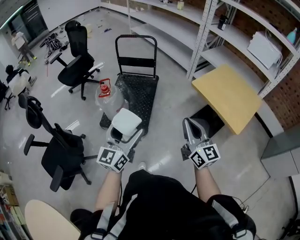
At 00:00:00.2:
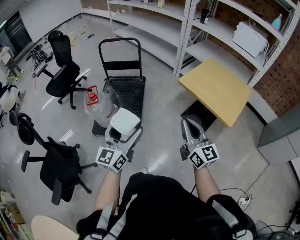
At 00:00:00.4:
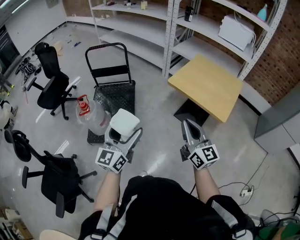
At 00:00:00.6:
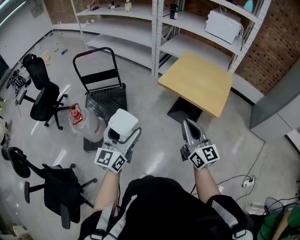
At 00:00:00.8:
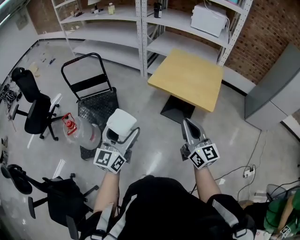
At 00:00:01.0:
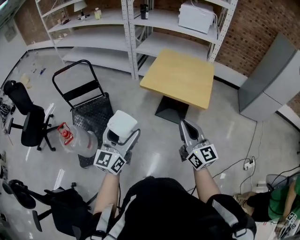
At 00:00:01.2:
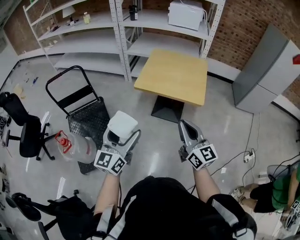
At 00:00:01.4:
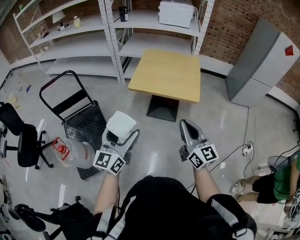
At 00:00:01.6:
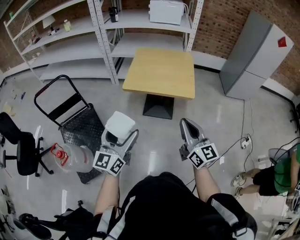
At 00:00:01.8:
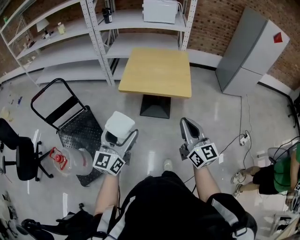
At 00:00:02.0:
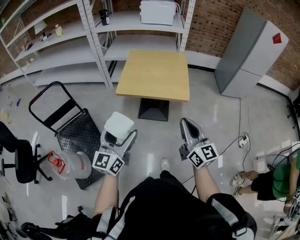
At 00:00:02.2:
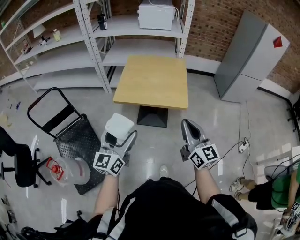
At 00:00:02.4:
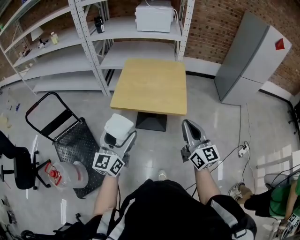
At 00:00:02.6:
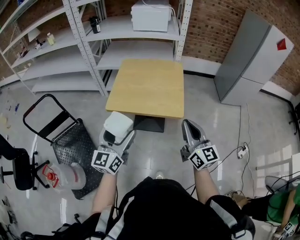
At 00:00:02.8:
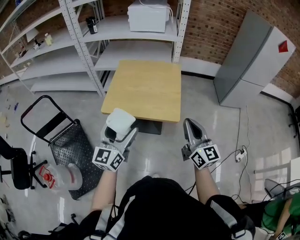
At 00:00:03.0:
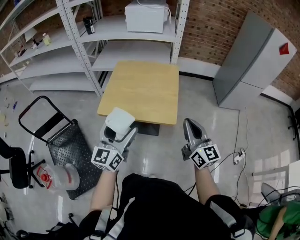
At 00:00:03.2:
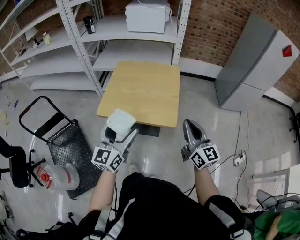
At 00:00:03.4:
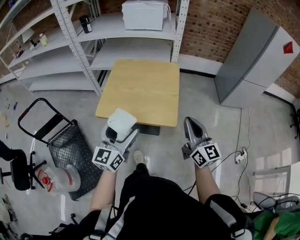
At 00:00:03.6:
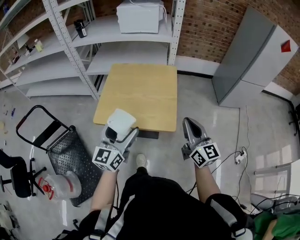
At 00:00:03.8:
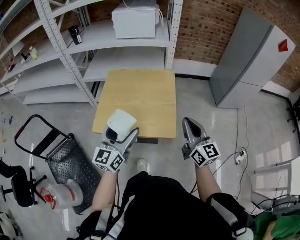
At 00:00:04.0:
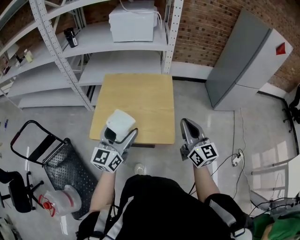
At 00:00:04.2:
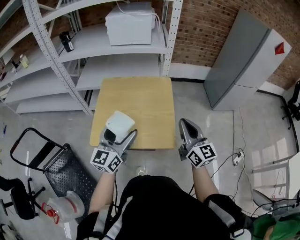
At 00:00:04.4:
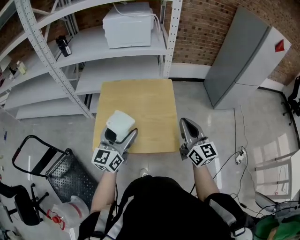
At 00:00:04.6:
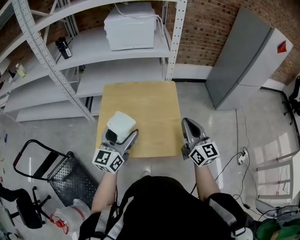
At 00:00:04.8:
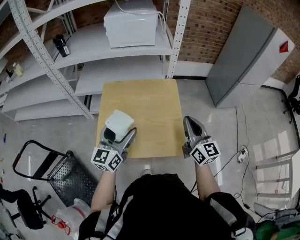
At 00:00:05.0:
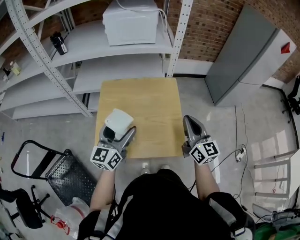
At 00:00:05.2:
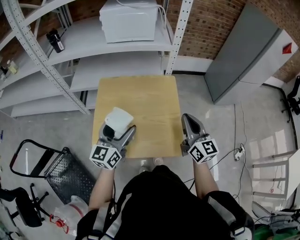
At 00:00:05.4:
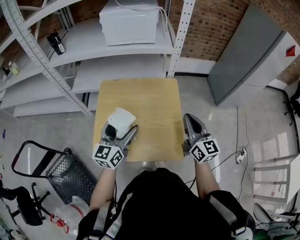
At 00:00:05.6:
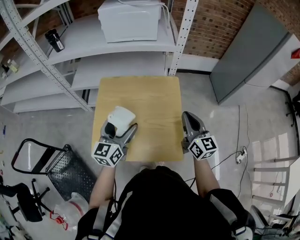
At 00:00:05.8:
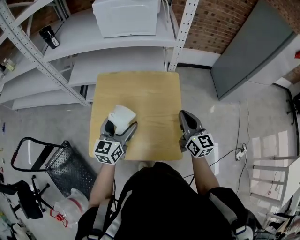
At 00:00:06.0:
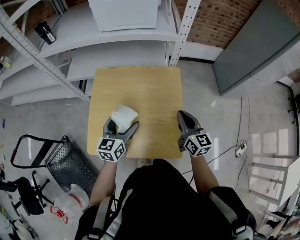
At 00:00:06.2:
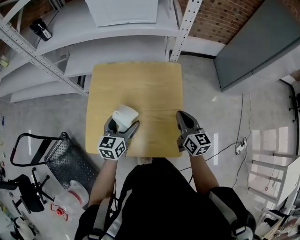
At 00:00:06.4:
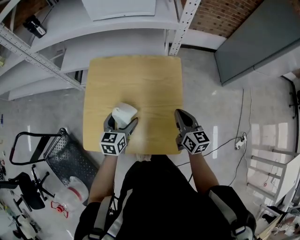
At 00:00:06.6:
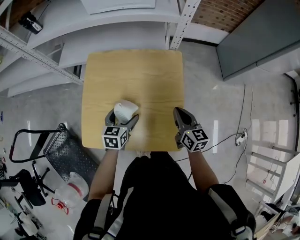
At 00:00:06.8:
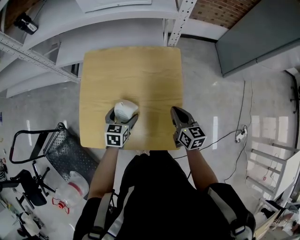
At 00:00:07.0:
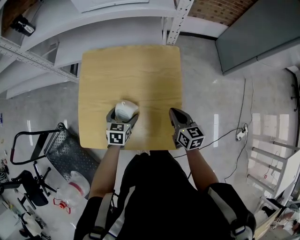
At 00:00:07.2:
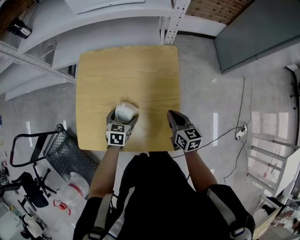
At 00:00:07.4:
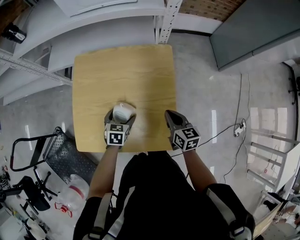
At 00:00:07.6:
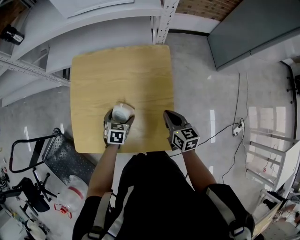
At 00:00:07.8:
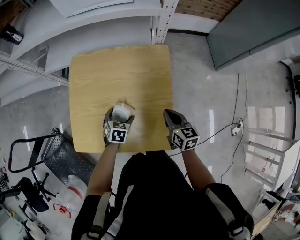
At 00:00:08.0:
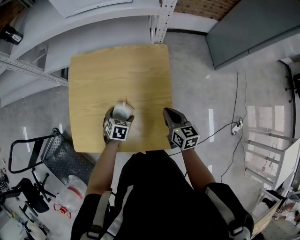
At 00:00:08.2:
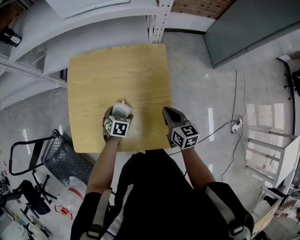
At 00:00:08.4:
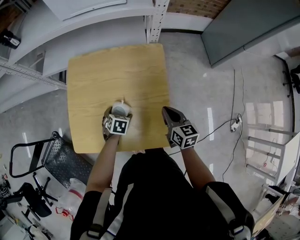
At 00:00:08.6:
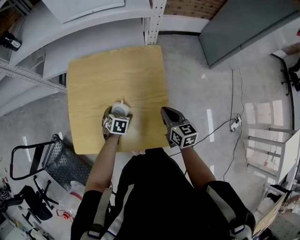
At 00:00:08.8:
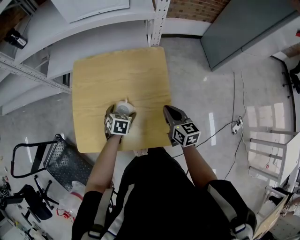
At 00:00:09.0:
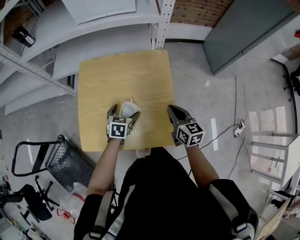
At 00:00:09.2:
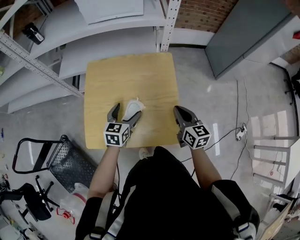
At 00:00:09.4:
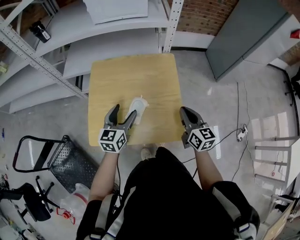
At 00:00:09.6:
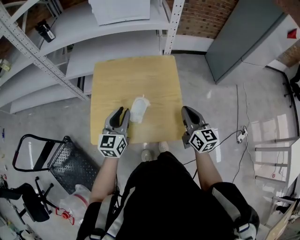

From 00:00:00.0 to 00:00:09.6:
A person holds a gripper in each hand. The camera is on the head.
From 00:00:00.0 to 00:00:01.6: The right gripper changes place by roughly 15 cm, and swivels approximately 40 degrees, while the left gripper shifts by about 20 cm, and rotates roughly 40 degrees.
From 00:00:01.6 to 00:00:03.2: Both grippers travel together forward and to the right, roughly 30 cm.
From 00:00:03.2 to 00:00:04.8: Both grippers travel together forward, some 25 cm.
From 00:00:04.8 to 00:00:06.4: Both grippers move downward and forward, about 20 cm. The left gripper angles its fingers downward, by roughly 30 degrees. The right gripper rotates about 20 degrees.
From 00:00:06.4 to 00:00:08.0: The left gripper goes approximately 15 cm downward, and tips its fingers downward by approximately 30 degrees. Meanwhile the right gripper travels downward by about 5 cm.
From 00:00:08.0 to 00:00:09.6: The right gripper is displaced upward and backward by approximately 15 cm, and changes its angle by about 20 degrees, while the left gripper is displaced upward by about 25 cm, angles its fingers upward, by roughly 50 degrees, and closes its fingers.

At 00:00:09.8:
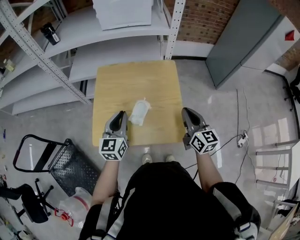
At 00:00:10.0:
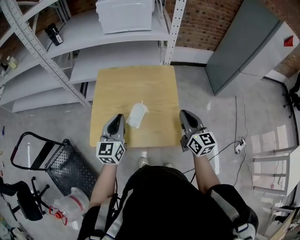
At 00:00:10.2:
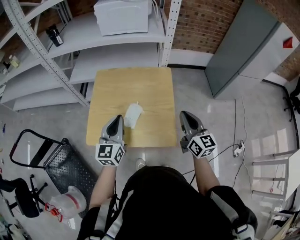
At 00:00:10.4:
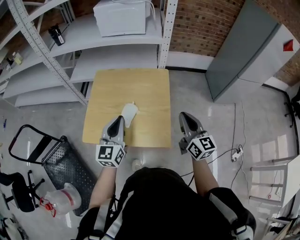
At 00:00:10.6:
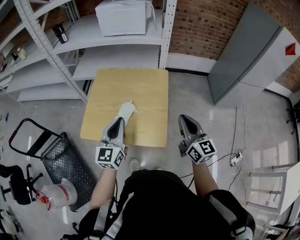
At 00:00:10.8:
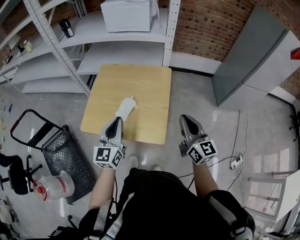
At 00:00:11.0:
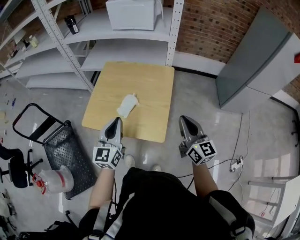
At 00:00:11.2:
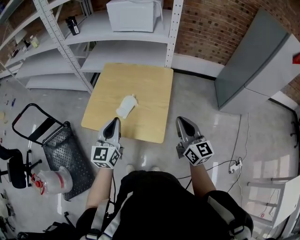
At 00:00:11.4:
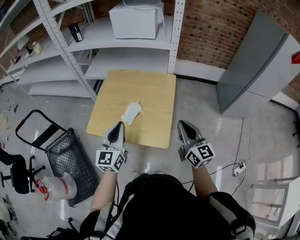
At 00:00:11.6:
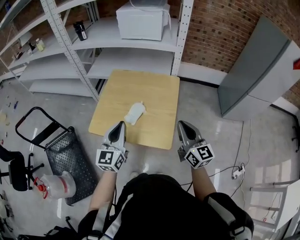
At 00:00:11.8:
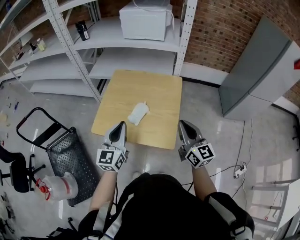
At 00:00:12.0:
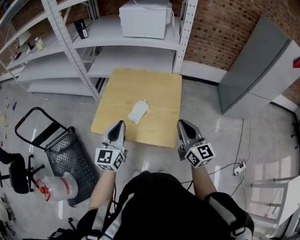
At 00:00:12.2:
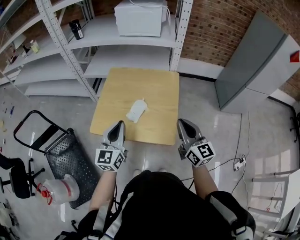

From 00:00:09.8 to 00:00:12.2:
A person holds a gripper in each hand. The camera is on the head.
From 00:00:09.8 to 00:00:11.0: The left gripper heads backward, to the right and upward, covering approximately 15 cm; the right gripper goes some 10 cm to the right and backward.
From 00:00:11.0 to 00:00:12.2: Both grippers move to the left, approximately 5 cm.

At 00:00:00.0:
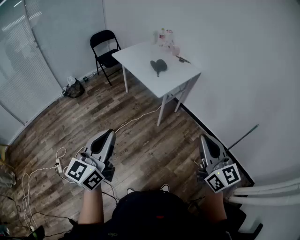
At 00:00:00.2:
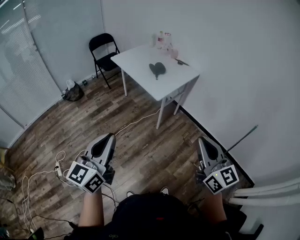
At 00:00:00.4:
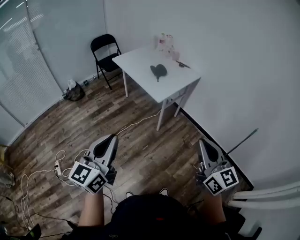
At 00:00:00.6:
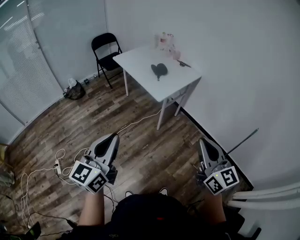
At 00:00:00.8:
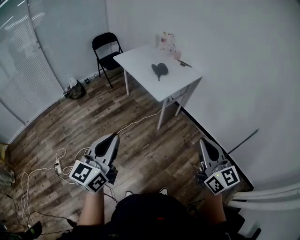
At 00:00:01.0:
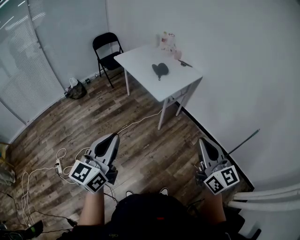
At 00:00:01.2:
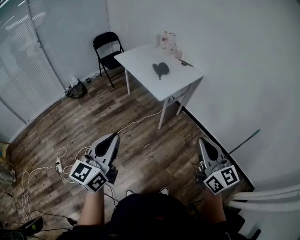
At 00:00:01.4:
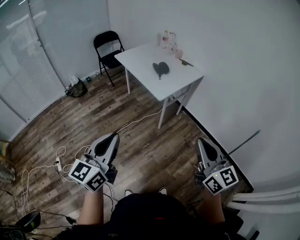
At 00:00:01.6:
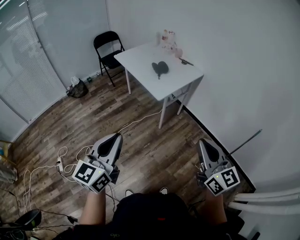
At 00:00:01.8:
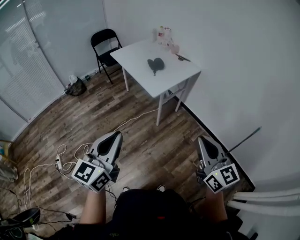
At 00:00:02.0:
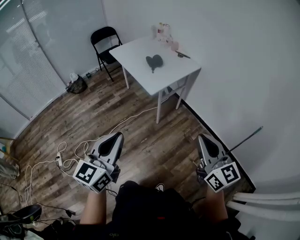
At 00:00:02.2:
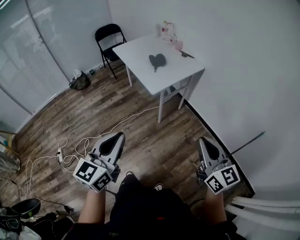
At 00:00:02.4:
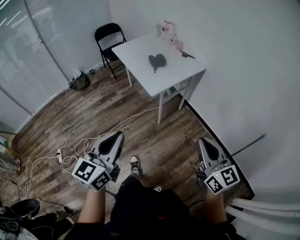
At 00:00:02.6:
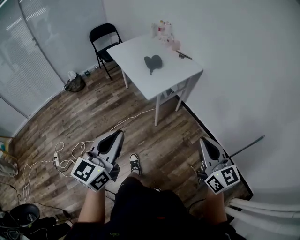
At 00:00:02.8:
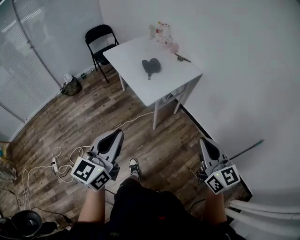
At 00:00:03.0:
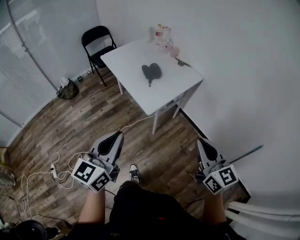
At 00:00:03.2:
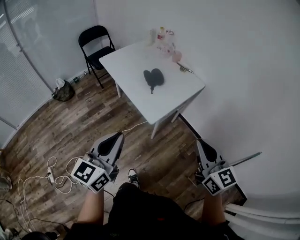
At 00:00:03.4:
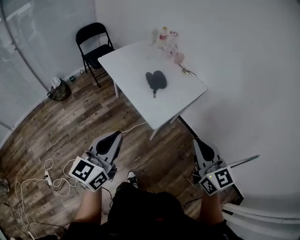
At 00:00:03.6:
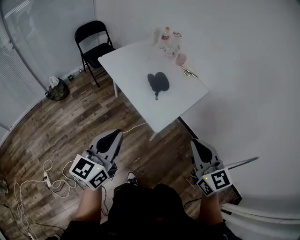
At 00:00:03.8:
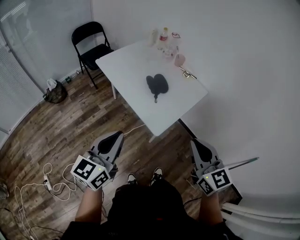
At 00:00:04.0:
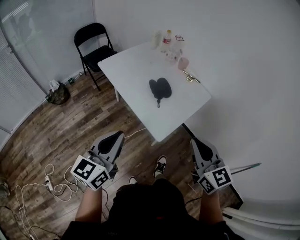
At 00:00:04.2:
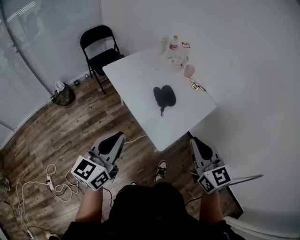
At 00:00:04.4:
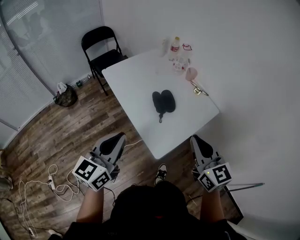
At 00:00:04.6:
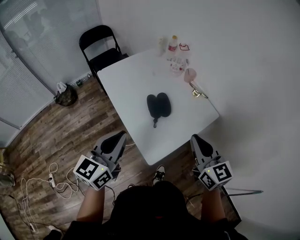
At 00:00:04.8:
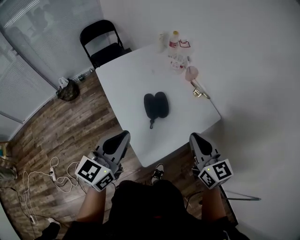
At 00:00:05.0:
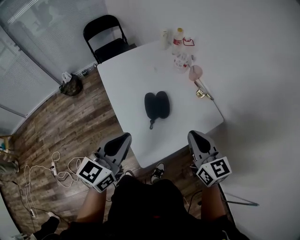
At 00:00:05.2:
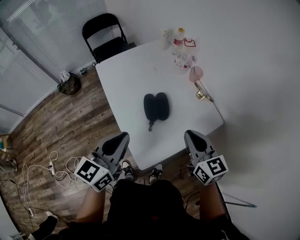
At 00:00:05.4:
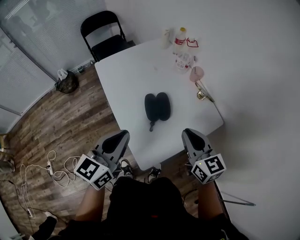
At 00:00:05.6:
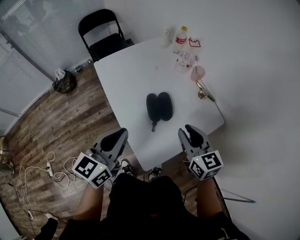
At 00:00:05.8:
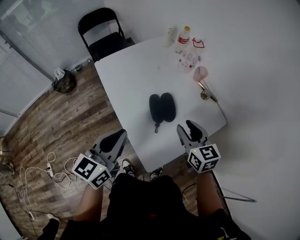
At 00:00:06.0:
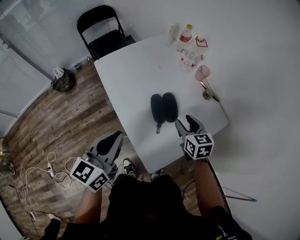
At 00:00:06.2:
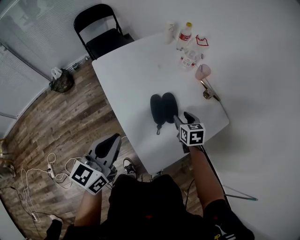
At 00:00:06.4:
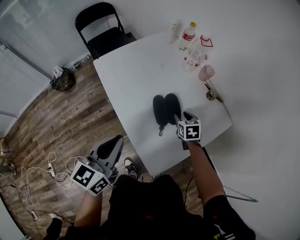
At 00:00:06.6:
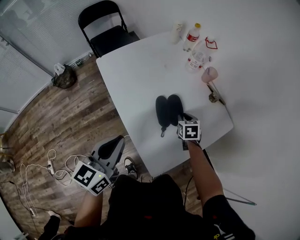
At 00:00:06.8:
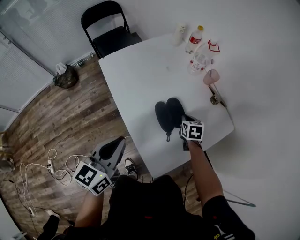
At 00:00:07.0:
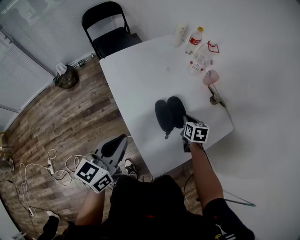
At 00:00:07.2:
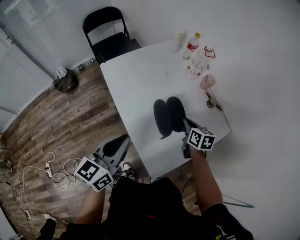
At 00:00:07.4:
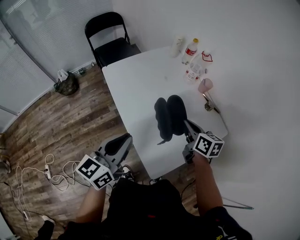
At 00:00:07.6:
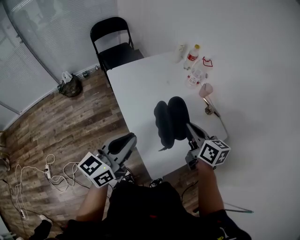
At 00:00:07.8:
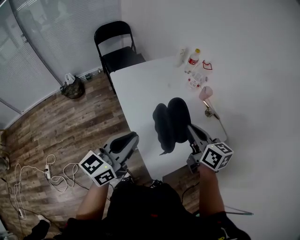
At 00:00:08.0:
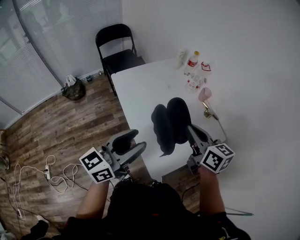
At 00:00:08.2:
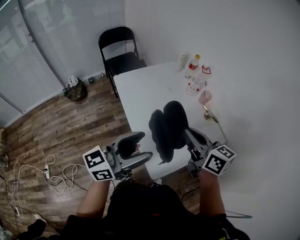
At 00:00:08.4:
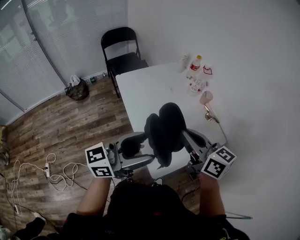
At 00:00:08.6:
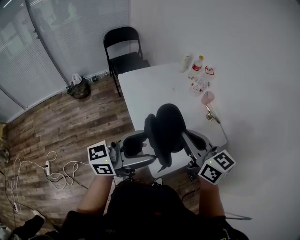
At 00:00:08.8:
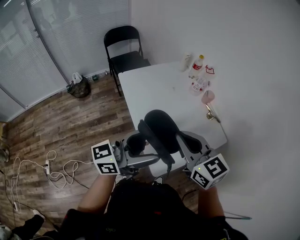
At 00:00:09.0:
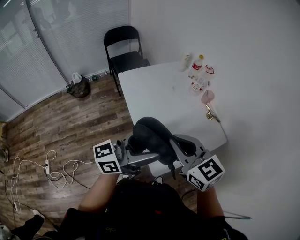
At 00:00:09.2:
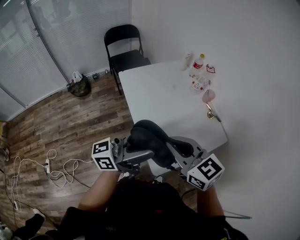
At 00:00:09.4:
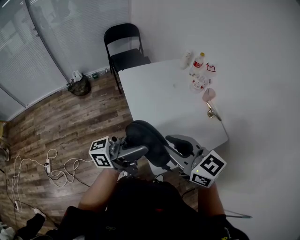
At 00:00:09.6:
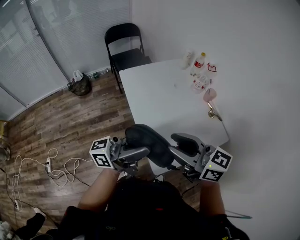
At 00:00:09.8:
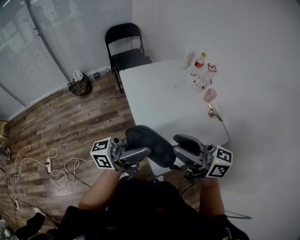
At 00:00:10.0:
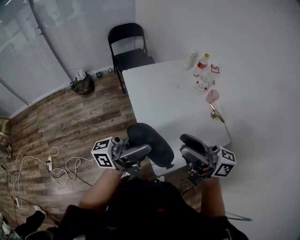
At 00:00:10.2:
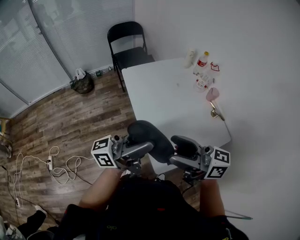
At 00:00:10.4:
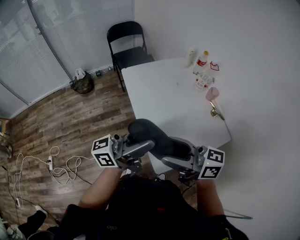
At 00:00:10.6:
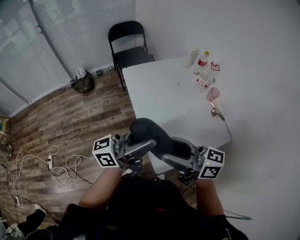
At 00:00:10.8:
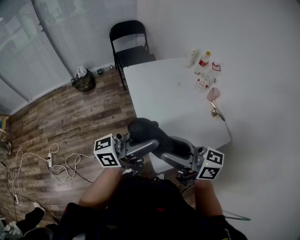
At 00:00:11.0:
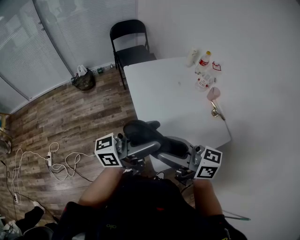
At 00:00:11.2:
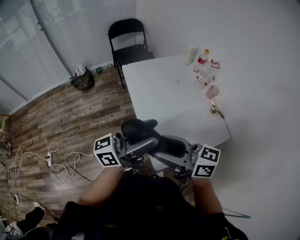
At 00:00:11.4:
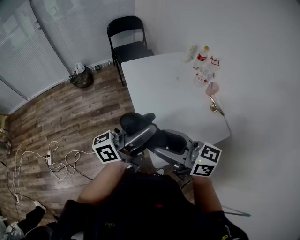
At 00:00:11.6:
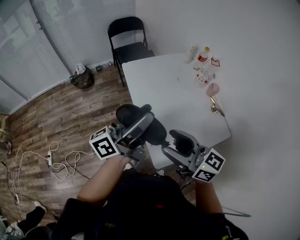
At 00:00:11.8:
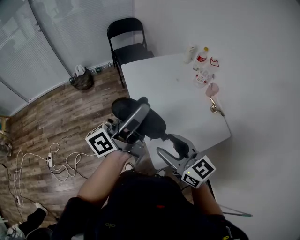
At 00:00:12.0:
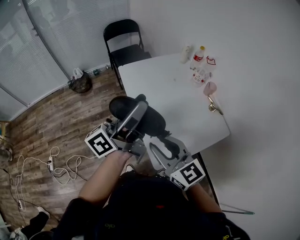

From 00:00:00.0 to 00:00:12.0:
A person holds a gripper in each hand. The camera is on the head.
From 00:00:00.0 to 00:00:01.6: The left gripper travels to the right by some 5 cm, while the right gripper ends up approximately 5 cm from where it was.
From 00:00:01.6 to 00:00:03.0: Both grippers move forward, some 20 cm.
From 00:00:03.0 to 00:00:04.4: The two grippers go about 30 cm forward.
From 00:00:04.4 to 00:00:06.0: The right gripper shifts about 35 cm forward and downward, swivels some 30 degrees, and opens up. The left gripper shifts about 15 cm forward.
From 00:00:06.0 to 00:00:07.6: The right gripper heads upward, covering about 10 cm, changes its angle by roughly 20 degrees, and closes up.
From 00:00:07.6 to 00:00:09.0: The left gripper shifts approximately 10 cm upward, backward and to the right, swivels approximately 30 degrees, and opens its fingers. Meanwhile the right gripper shifts some 20 cm backward, upward and to the left, and rotates roughly 40 degrees.
From 00:00:09.0 to 00:00:10.4: The right gripper turns by roughly 50 degrees, and opens up.
From 00:00:10.4 to 00:00:12.0: The right gripper swivels some 40 degrees, and closes its fingers. Meanwhile the left gripper moves forward, roughly 5 cm, and swivels approximately 20 degrees.
